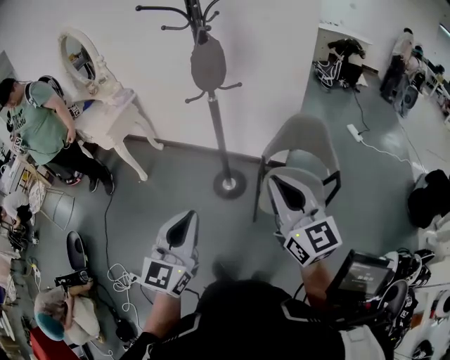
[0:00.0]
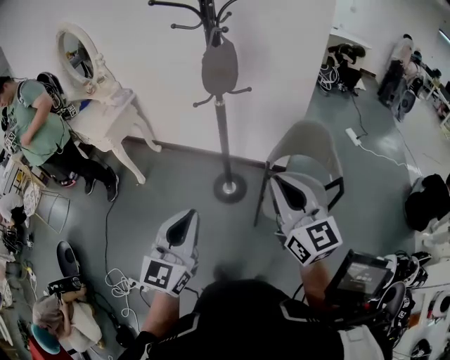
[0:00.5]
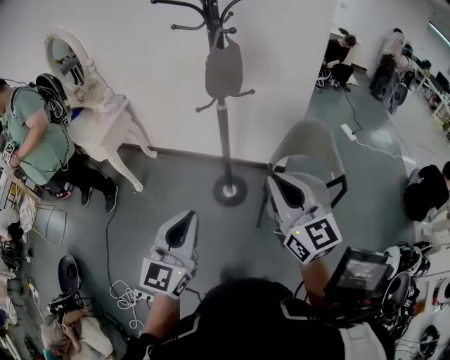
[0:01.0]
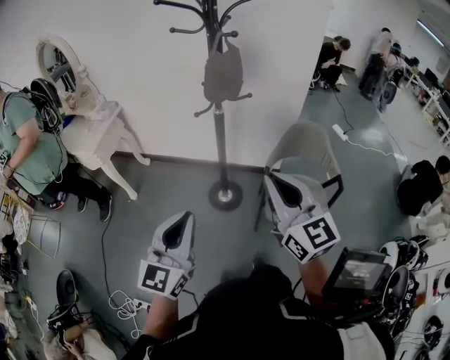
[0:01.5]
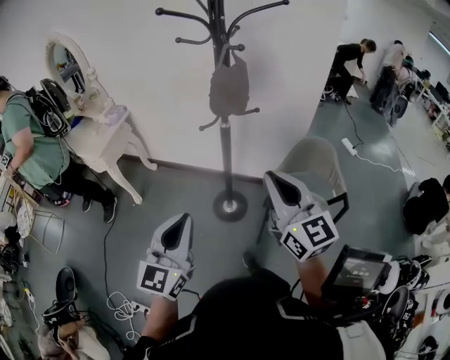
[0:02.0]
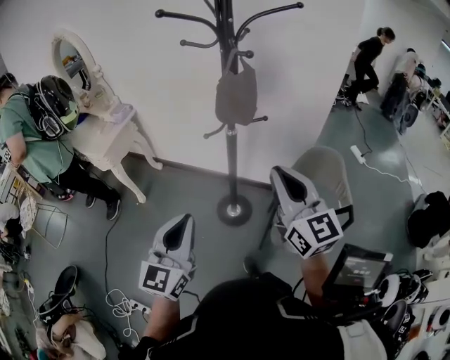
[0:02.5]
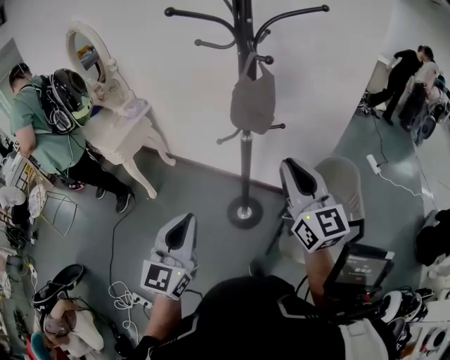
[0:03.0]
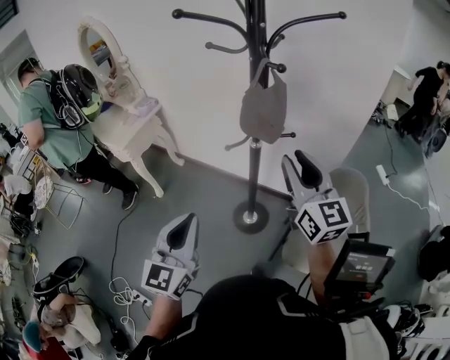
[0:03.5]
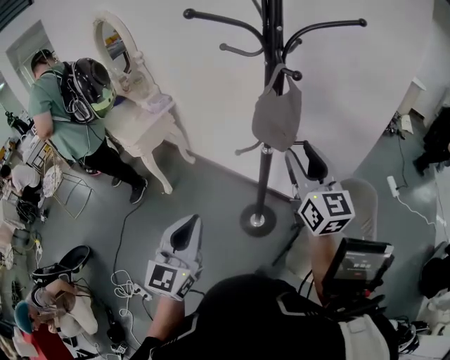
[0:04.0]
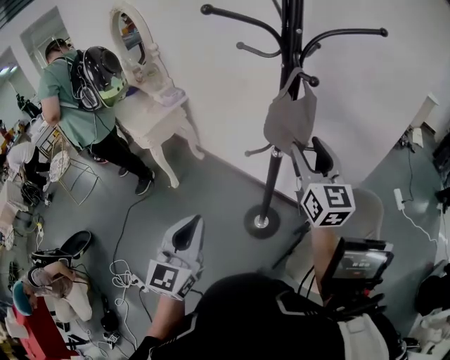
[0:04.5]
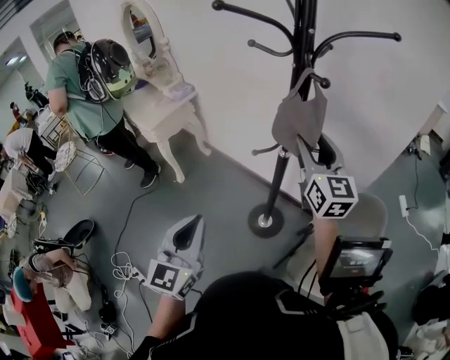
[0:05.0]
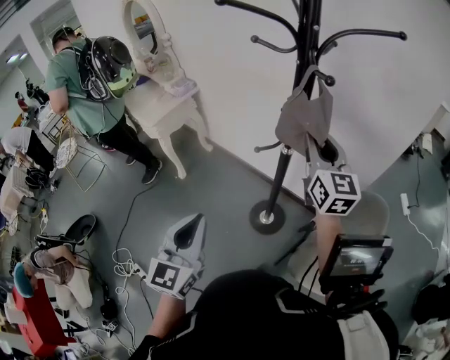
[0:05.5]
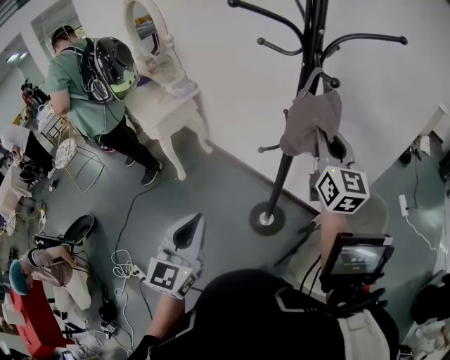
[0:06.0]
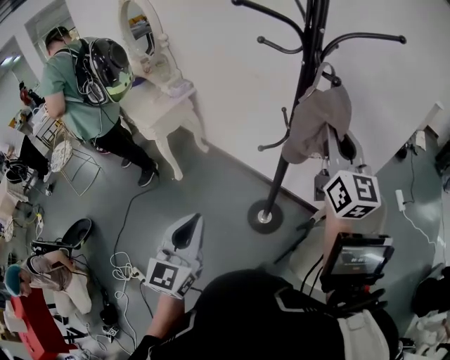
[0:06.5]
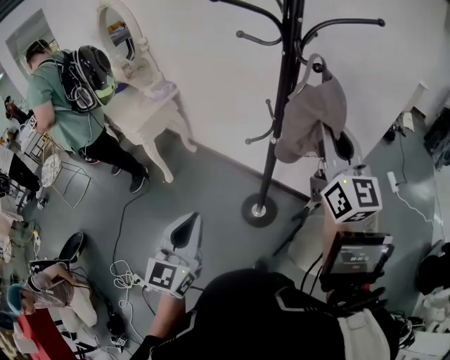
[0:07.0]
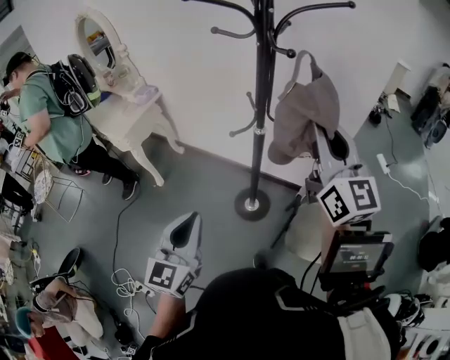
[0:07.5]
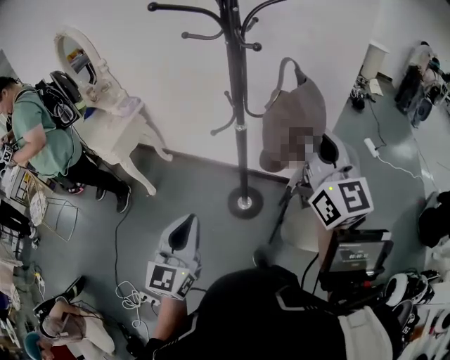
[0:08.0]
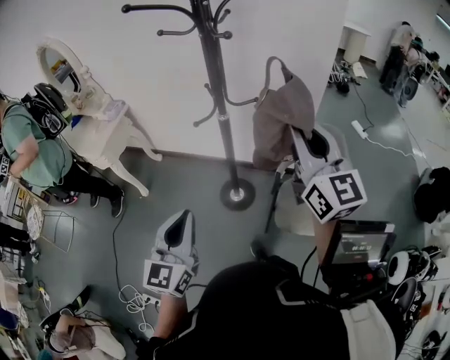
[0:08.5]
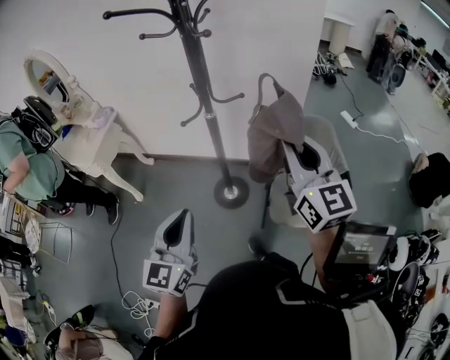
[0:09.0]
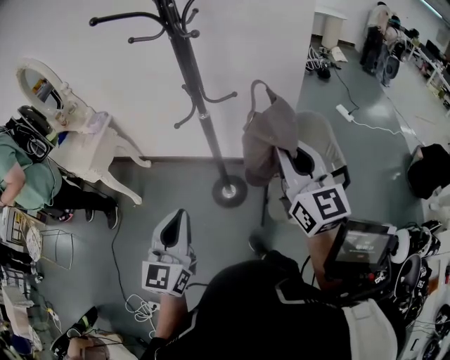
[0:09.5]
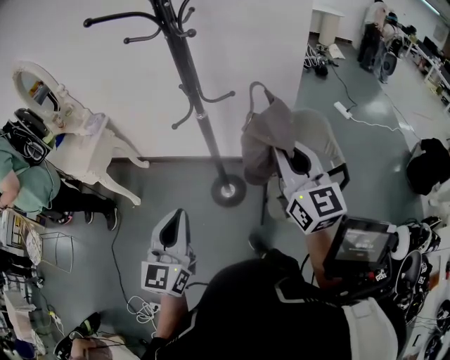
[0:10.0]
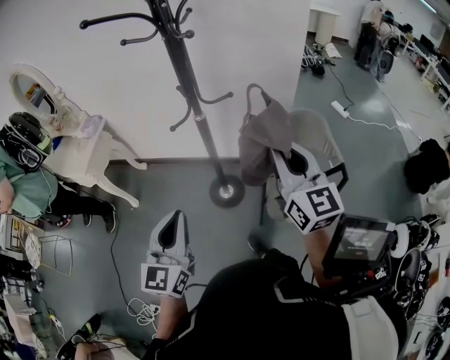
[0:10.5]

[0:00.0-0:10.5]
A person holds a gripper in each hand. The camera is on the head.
0:00.0 to 0:02.0: The two grippers go some 15 cm forward and to the left.
0:02.0 to 0:04.0: The left gripper shifts approximately 10 cm forward, while the right gripper is displaced forward by approximately 25 cm, and opens up.
0:04.0 to 0:06.5: The right gripper shifts some 5 cm upward, and closes. The left gripper ends up approximately 5 cm from where it was.
0:06.5 to 0:08.5: The right gripper moves backward and to the right, approximately 20 cm. The left gripper travels to the right by some 5 cm.
0:08.5 to 0:10.5: The right gripper heads downward, covering approximately 5 cm.

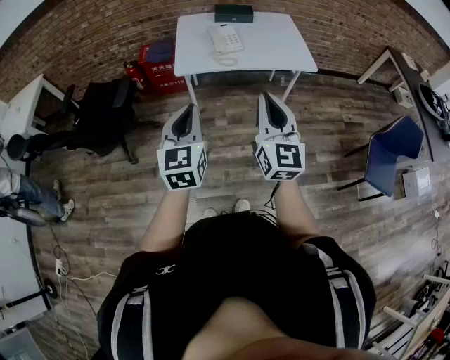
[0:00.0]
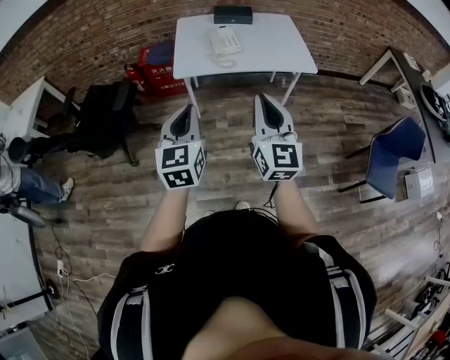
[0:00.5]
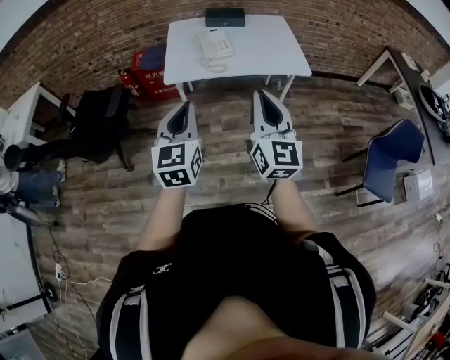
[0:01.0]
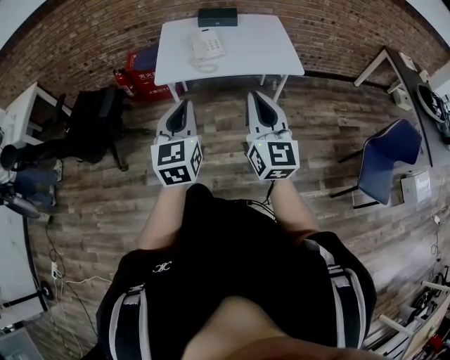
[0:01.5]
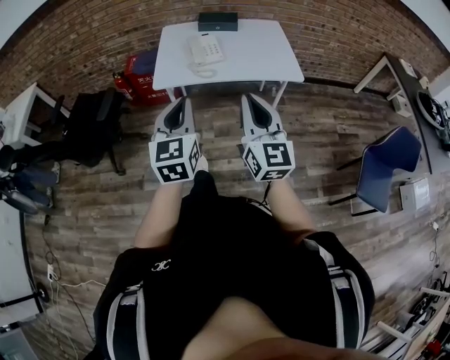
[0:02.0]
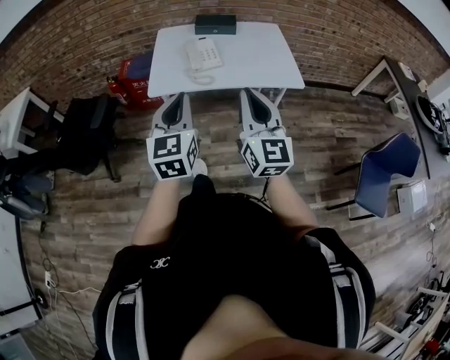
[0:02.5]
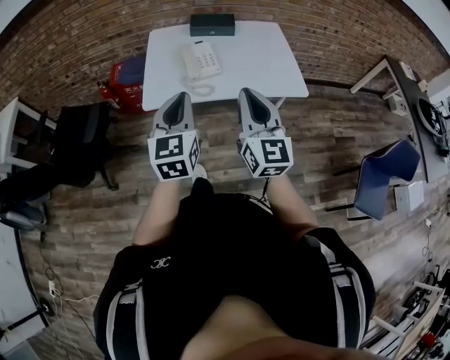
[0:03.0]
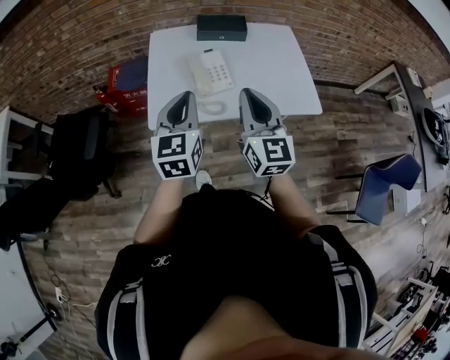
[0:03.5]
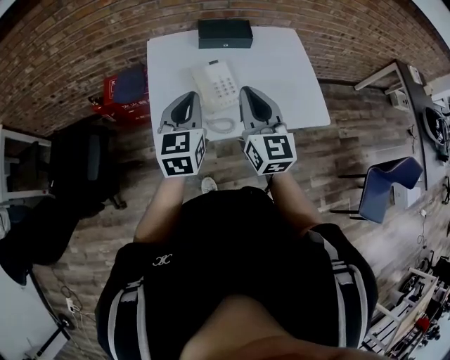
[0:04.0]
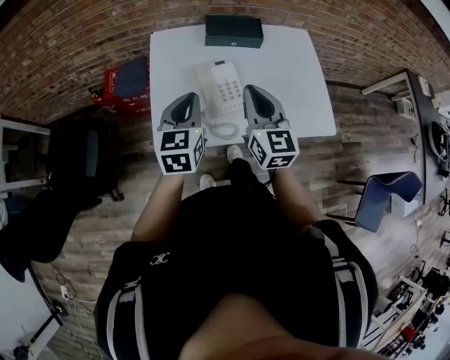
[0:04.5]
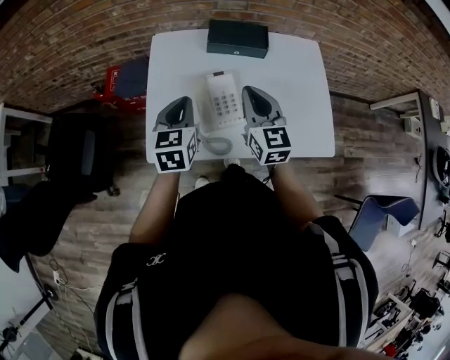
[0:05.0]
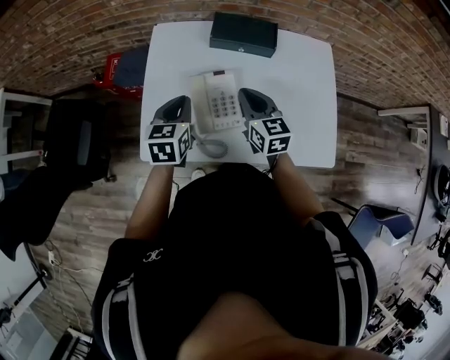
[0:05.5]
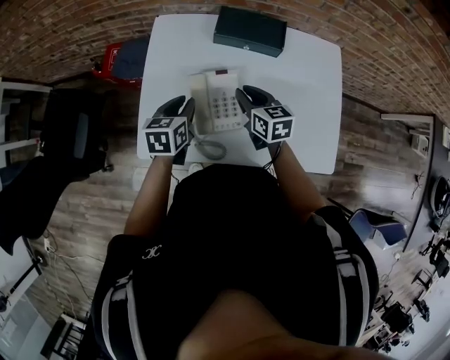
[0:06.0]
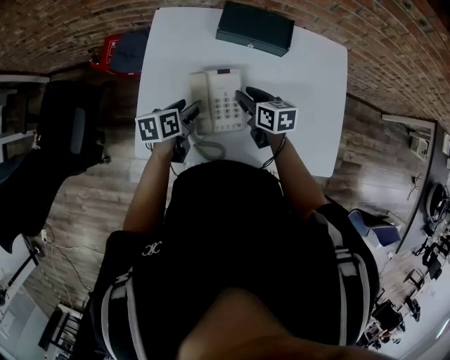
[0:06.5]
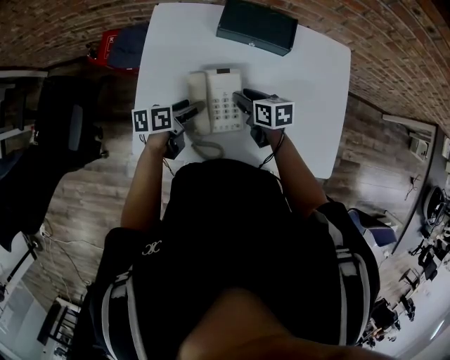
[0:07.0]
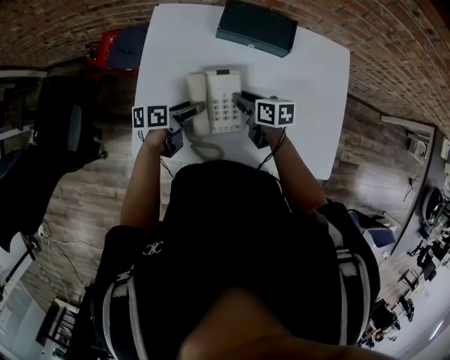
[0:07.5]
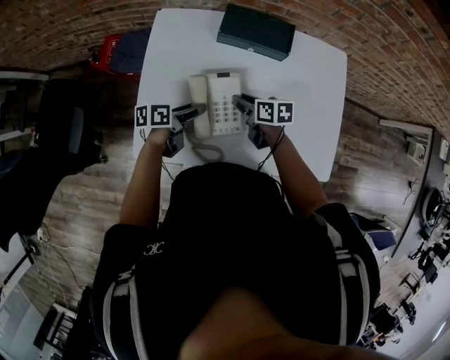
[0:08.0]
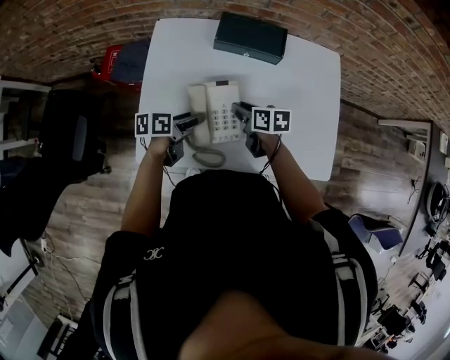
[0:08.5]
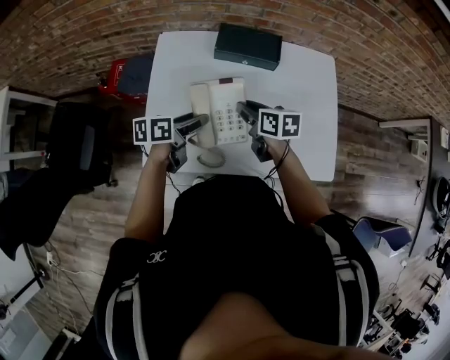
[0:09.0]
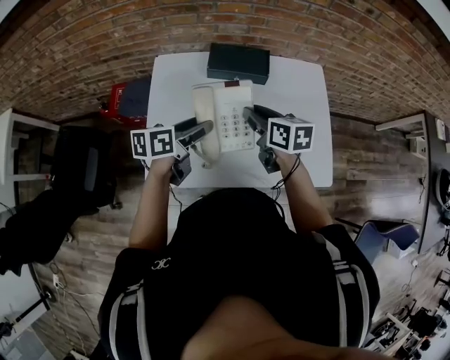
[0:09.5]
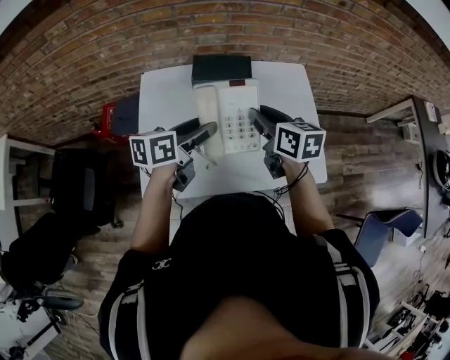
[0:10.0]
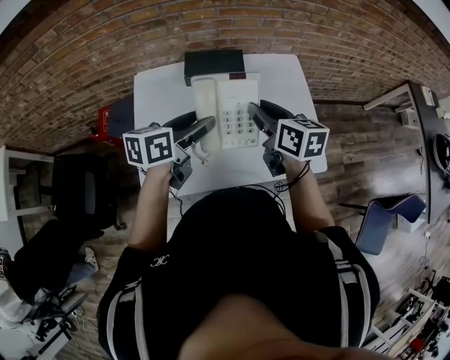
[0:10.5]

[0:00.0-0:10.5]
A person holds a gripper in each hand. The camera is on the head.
0:00.0 to 0:02.0: Both grippers travel together to the right and forward, about 10 cm.
0:02.0 to 0:04.0: The pair of grippers is taken forward, some 40 cm.
0:04.0 to 0:06.5: Both grippers move downward and forward, approximately 30 cm. The left gripper rotates around the line of its fingers by roughly 40 degrees, counterclockwise from behind, and opens. The right gripper angles its fingers downward, by some 30 degrees, and opens its fingers.
0:08.5 to 0:10.5: The right gripper moves upward and to the right, about 25 cm, and turns by roughly 30 degrees. The left gripper shifts some 20 cm upward, and swivels some 30 degrees.

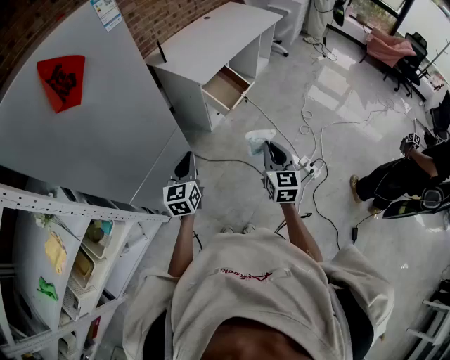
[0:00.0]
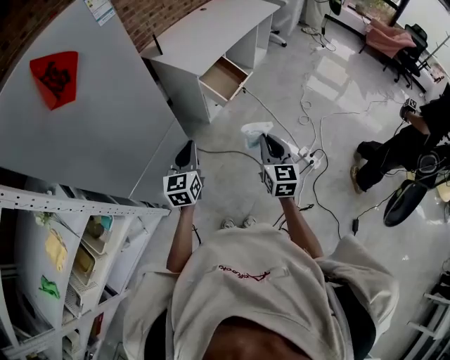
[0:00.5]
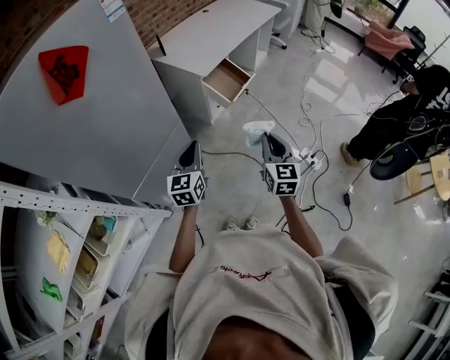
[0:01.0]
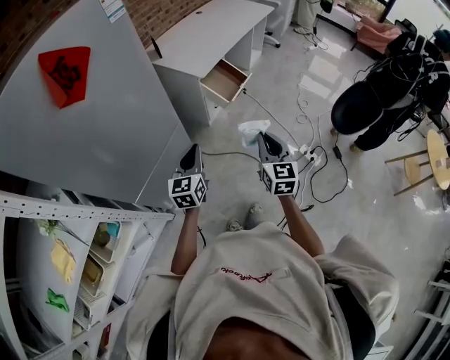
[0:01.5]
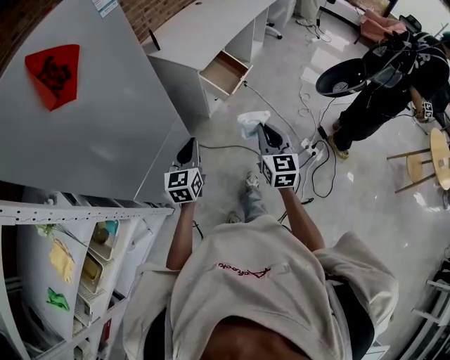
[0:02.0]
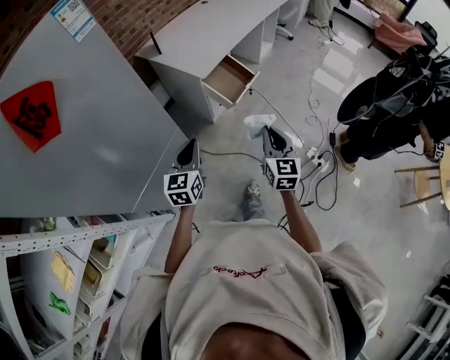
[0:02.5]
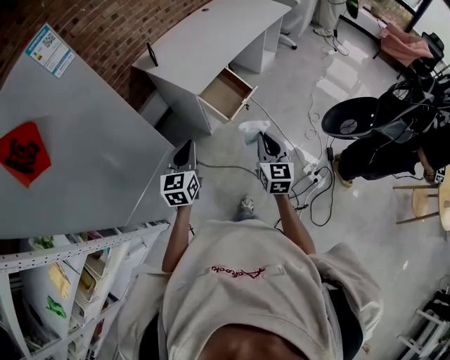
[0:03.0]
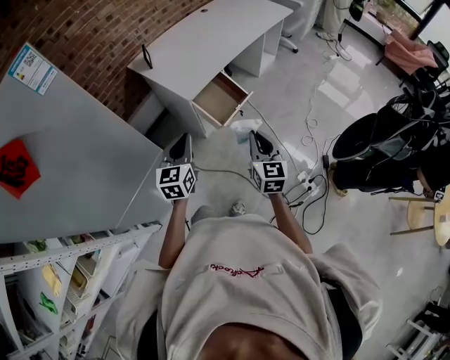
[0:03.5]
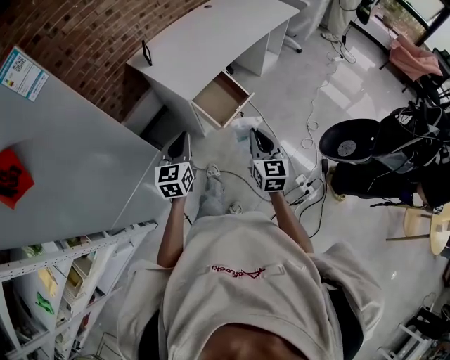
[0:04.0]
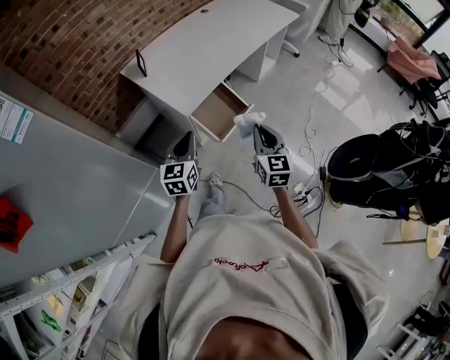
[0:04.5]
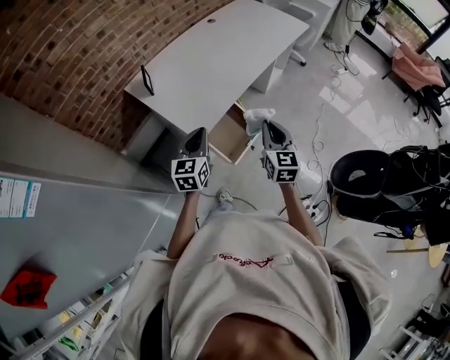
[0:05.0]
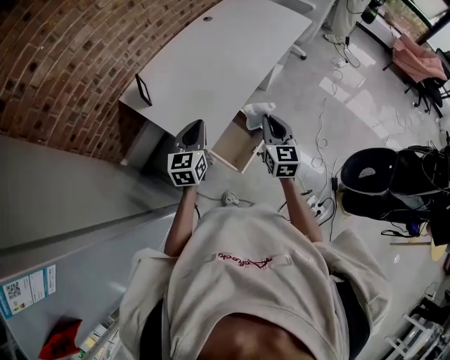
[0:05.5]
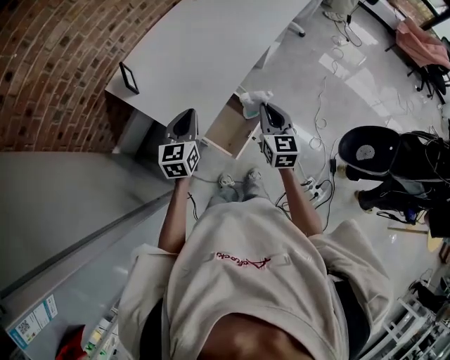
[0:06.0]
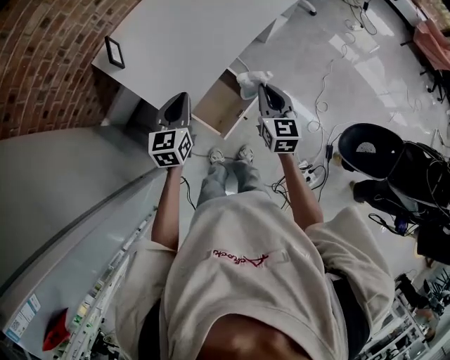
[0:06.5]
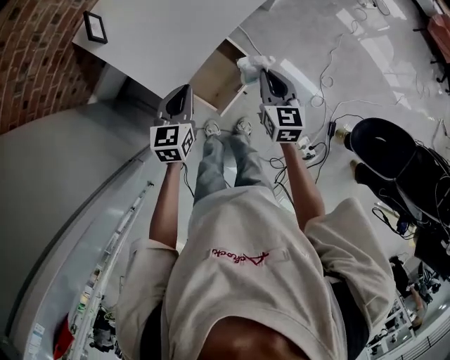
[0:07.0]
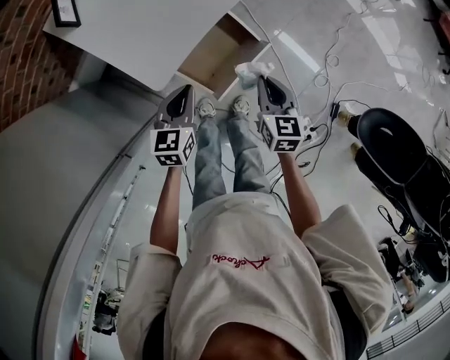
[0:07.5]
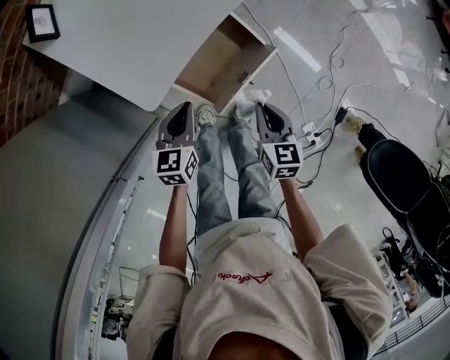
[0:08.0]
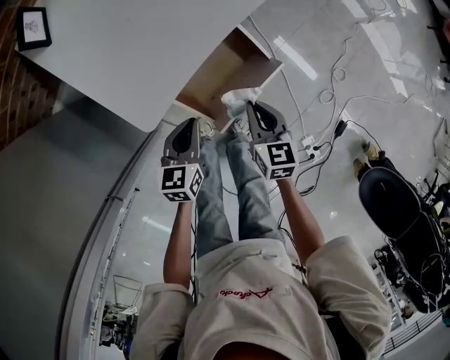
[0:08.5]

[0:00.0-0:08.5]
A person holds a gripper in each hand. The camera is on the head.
0:00.0 to 0:02.0: The right gripper moves to the left, roughly 5 cm.
0:02.0 to 0:04.0: Both grippers travel together forward, about 25 cm.
0:04.0 to 0:06.5: The grippers both shift forward by approximately 35 cm.
0:06.5 to 0:08.5: The two grippers go about 30 cm downward. The left gripper changes its angle by some 20 degrees. Meanwhile the right gripper changes its angle by about 20 degrees.
